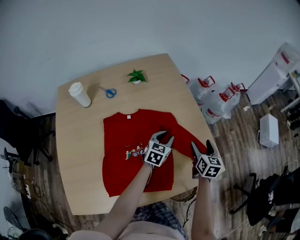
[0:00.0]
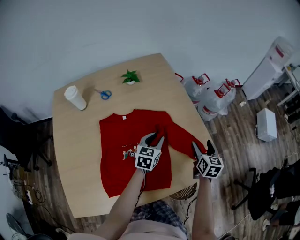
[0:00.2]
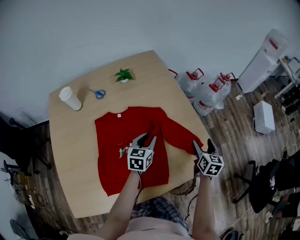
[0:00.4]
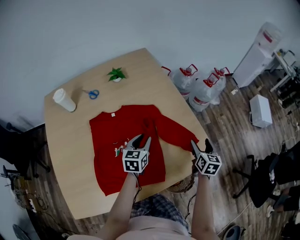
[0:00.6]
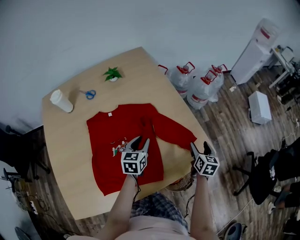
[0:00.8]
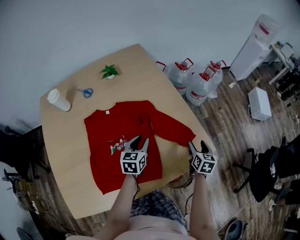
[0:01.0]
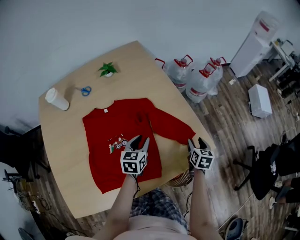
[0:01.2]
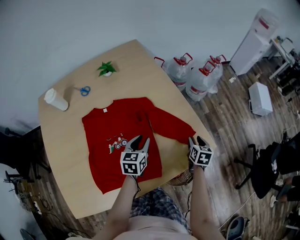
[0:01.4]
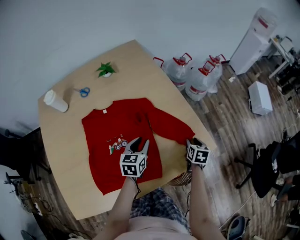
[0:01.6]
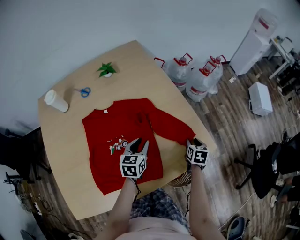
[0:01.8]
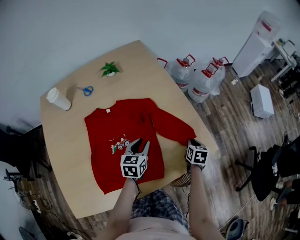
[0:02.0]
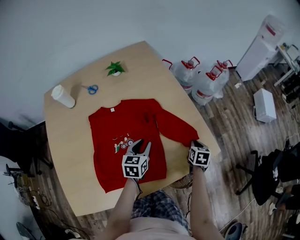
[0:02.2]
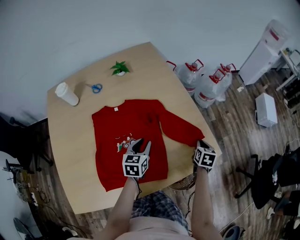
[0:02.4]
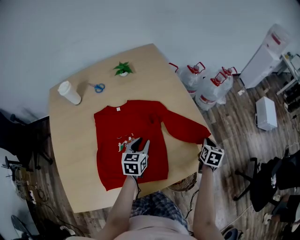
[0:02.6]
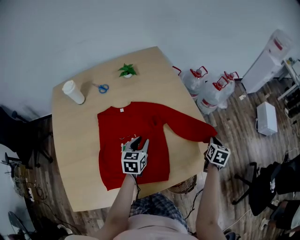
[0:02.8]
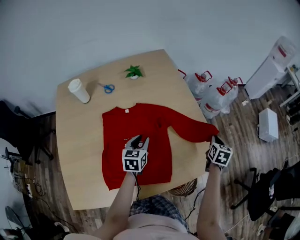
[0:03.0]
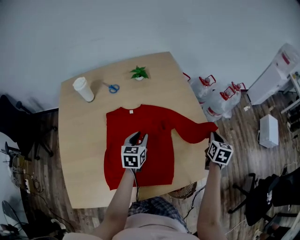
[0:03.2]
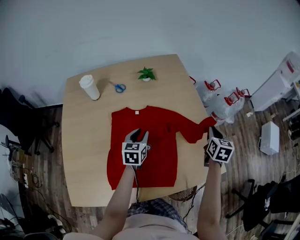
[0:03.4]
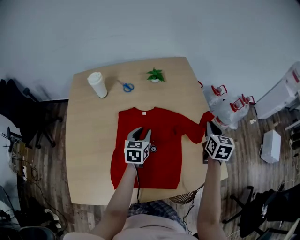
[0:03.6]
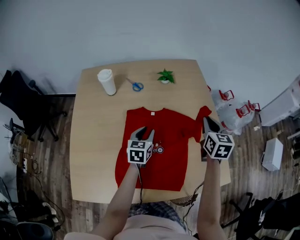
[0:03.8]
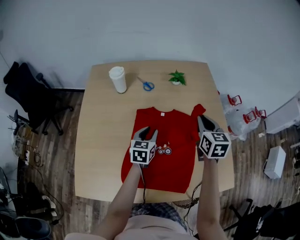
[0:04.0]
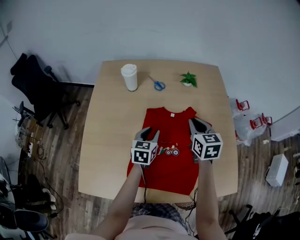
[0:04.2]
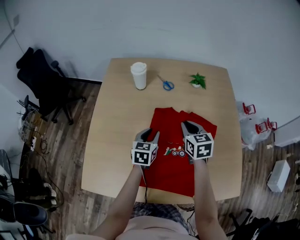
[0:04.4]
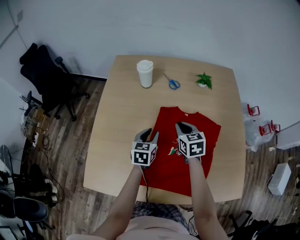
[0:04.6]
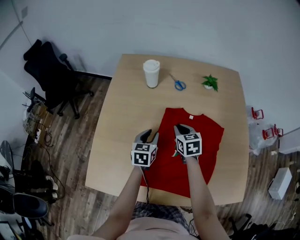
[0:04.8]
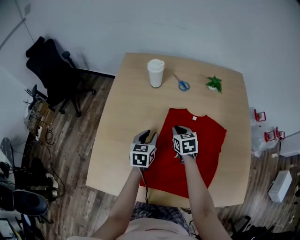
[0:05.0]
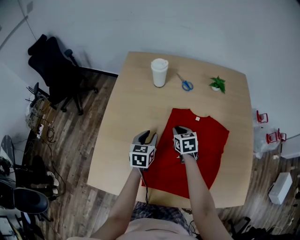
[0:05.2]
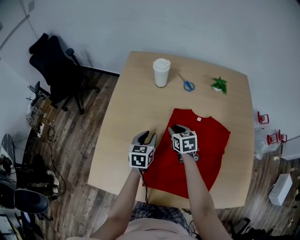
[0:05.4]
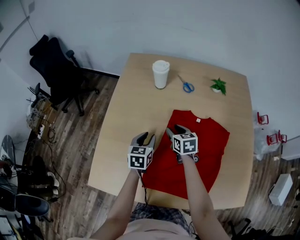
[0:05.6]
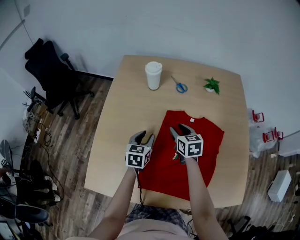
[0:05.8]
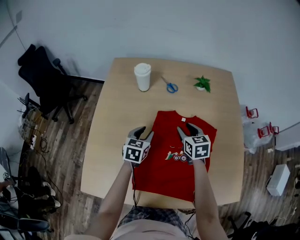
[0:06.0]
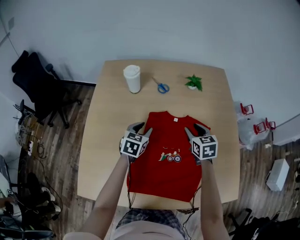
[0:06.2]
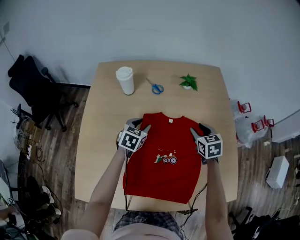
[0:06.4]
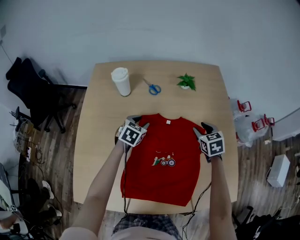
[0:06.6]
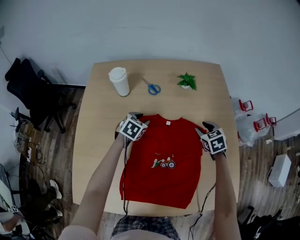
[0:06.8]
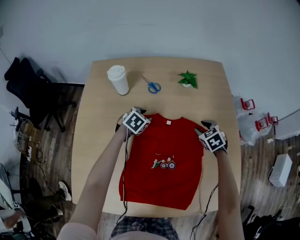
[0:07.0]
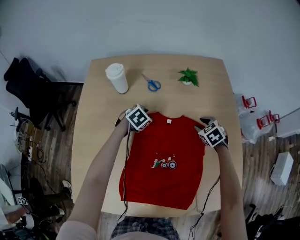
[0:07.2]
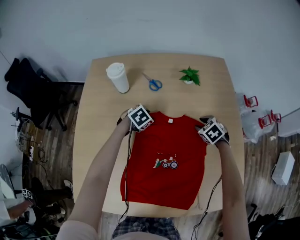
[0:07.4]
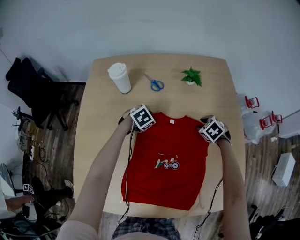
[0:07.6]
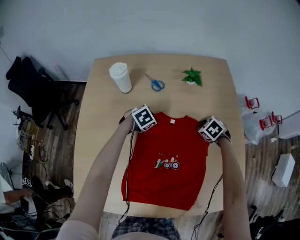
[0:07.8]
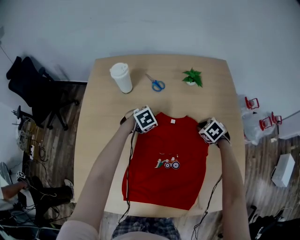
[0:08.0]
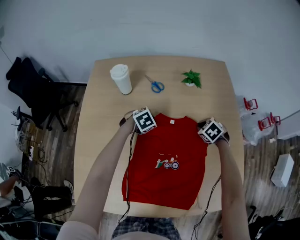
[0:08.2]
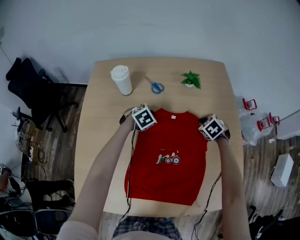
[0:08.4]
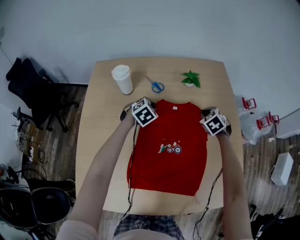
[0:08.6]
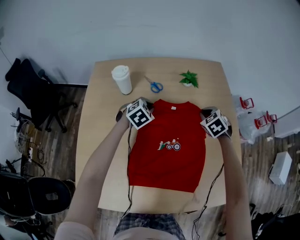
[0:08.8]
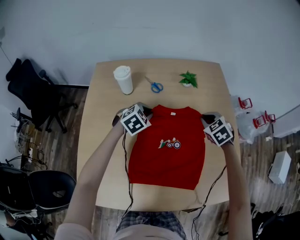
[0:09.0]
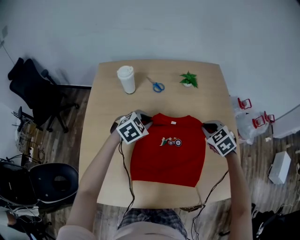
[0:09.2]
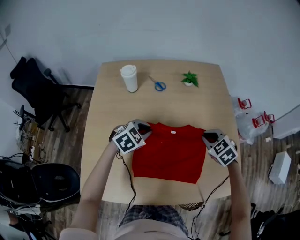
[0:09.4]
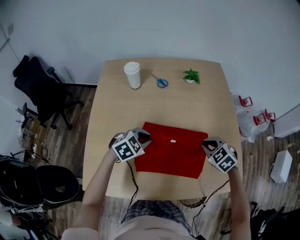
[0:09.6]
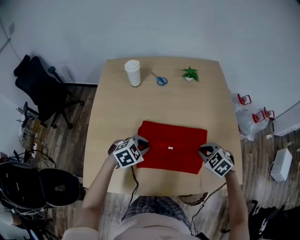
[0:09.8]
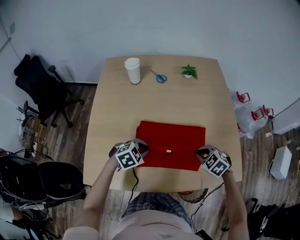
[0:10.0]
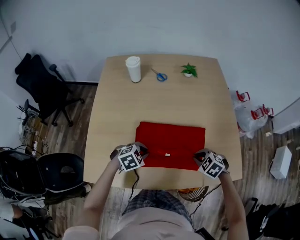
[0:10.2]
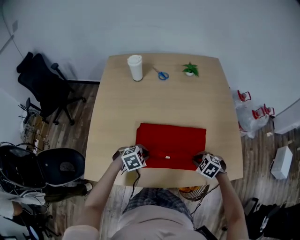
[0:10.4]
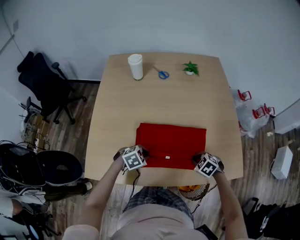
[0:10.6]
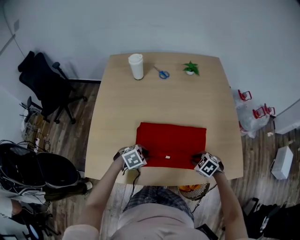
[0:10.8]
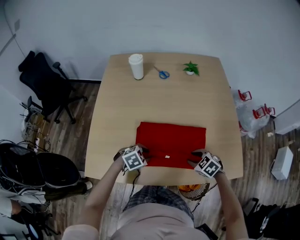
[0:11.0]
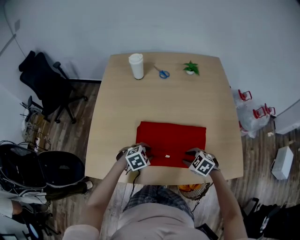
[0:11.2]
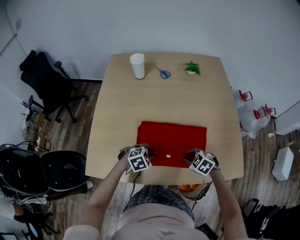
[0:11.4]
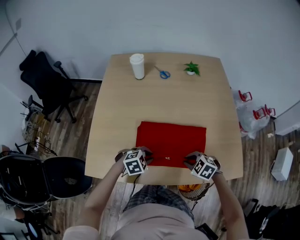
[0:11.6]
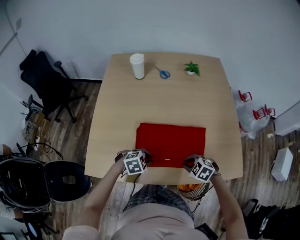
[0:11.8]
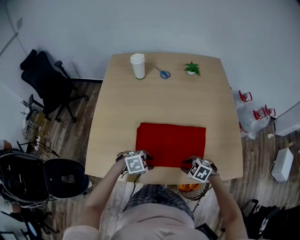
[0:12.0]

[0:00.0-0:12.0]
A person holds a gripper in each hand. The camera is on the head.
0:00.0 to 0:01.6: The left gripper heads backward, covering some 10 cm. Meanwhile the right gripper is displaced downward, to the right and backward by about 15 cm, changes its angle by roughly 20 degrees, and closes up.
0:01.6 to 0:03.0: The left gripper moves to the left, approximately 10 cm, while the right gripper shifts about 15 cm upward and forward.
0:03.0 to 0:04.4: The left gripper ends up about 20 cm from where it was. Meanwhile the right gripper shifts by roughly 50 cm, and rotates roughly 50 degrees.
0:04.4 to 0:06.0: The right gripper reaches some 15 cm to the left, then returns, and opens its fingers.
0:06.0 to 0:07.6: The left gripper travels forward, downward and to the right by approximately 20 cm, and points its fingers about 30 degrees further downward, while the right gripper is displaced to the right, downward and forward by about 20 cm, and angles its fingers downward, by about 30 degrees.
0:07.6 to 0:09.0: The grippers both shift upward by some 15 cm.
0:09.0 to 0:10.4: The right gripper shifts by approximately 35 cm, and rotates roughly 30 degrees. Meanwhile the left gripper shifts by roughly 35 cm.
0:10.4 to 0:12.0: The right gripper ends up about 5 cm from where it was, while the left gripper moves approximately 5 cm, and opens up.

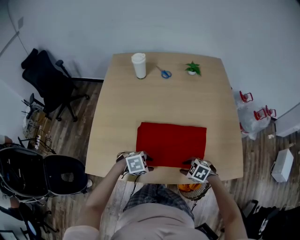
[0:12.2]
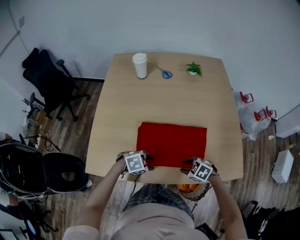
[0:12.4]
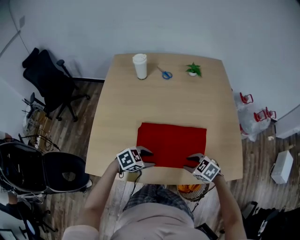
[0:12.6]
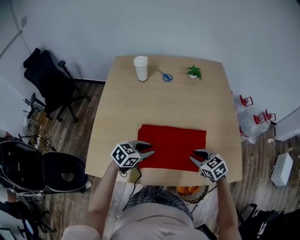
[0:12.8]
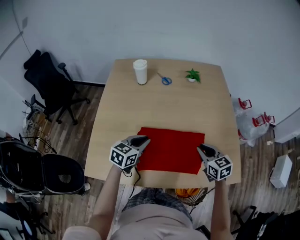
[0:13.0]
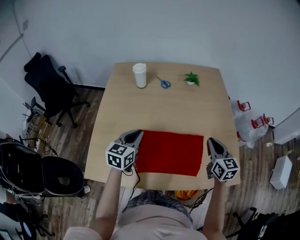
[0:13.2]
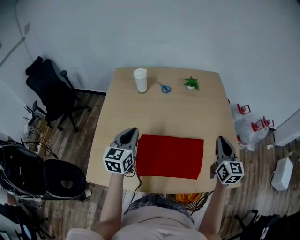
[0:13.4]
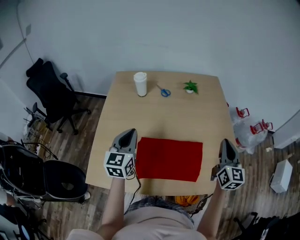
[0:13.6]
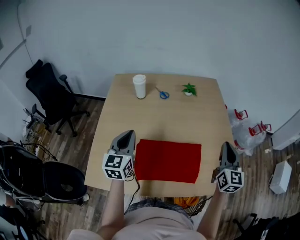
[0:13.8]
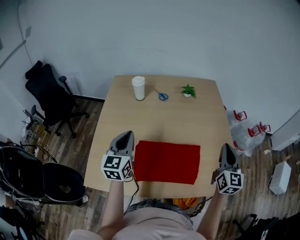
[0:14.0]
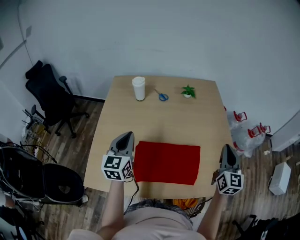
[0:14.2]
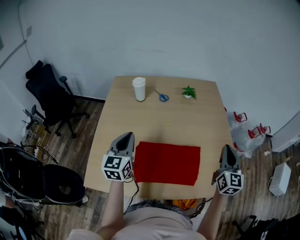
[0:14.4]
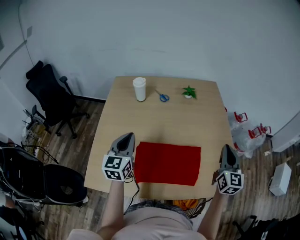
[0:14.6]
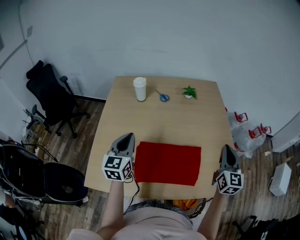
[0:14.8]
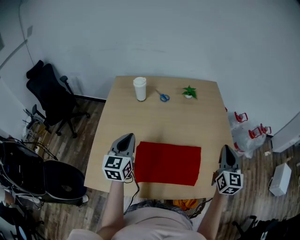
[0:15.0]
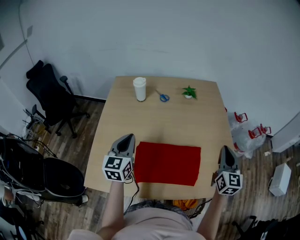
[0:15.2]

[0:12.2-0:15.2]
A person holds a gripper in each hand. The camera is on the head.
0:12.2 to 0:13.8: The two grippers go roughly 30 cm upward. The left gripper angles its fingers upward, by approximately 50 degrees, and closes up, while the right gripper angles its fingers upward, by some 60 degrees, and closes up.
0:13.8 to 0:15.2: Both grippers stay about where they are.

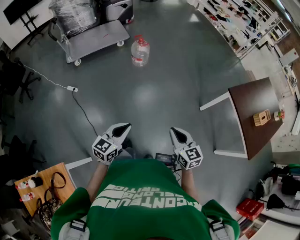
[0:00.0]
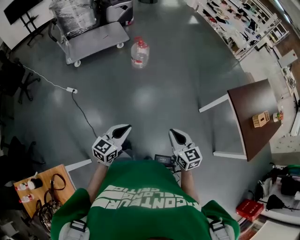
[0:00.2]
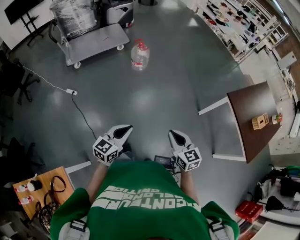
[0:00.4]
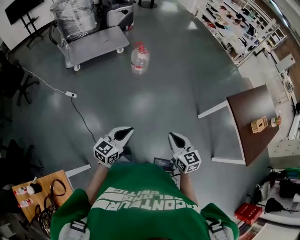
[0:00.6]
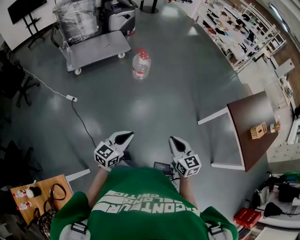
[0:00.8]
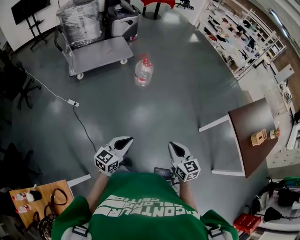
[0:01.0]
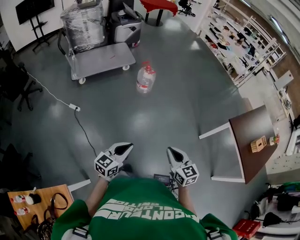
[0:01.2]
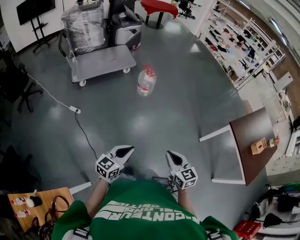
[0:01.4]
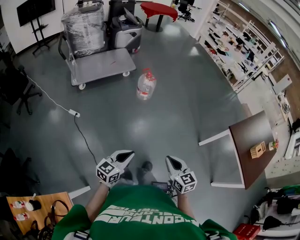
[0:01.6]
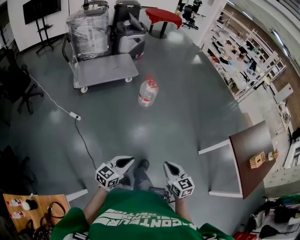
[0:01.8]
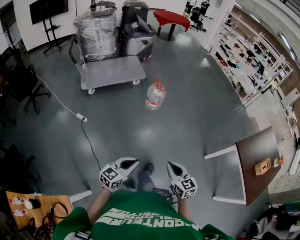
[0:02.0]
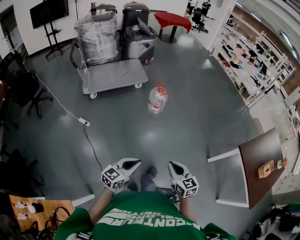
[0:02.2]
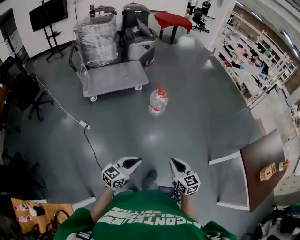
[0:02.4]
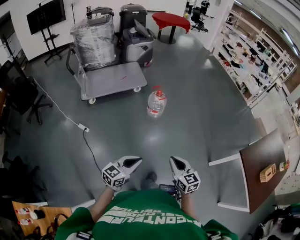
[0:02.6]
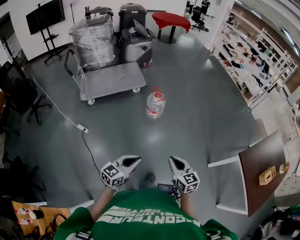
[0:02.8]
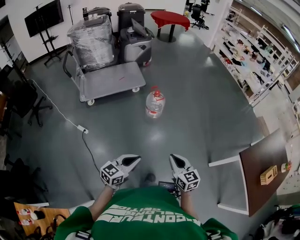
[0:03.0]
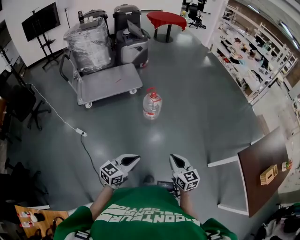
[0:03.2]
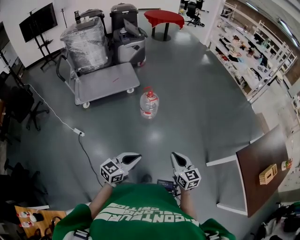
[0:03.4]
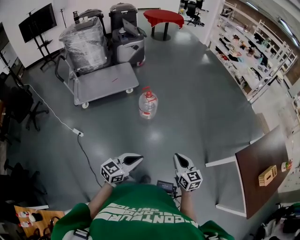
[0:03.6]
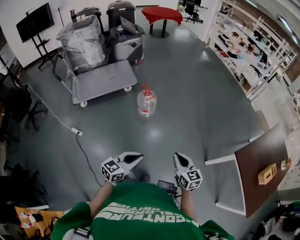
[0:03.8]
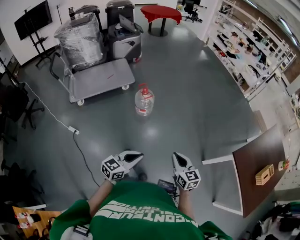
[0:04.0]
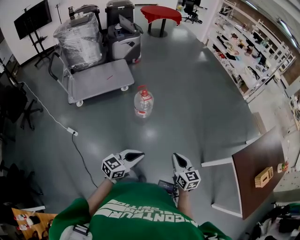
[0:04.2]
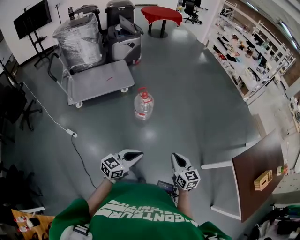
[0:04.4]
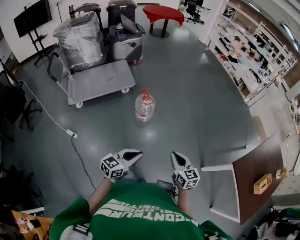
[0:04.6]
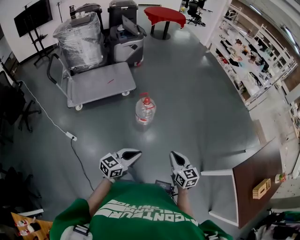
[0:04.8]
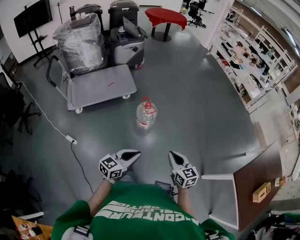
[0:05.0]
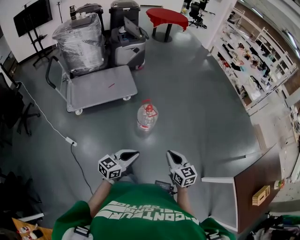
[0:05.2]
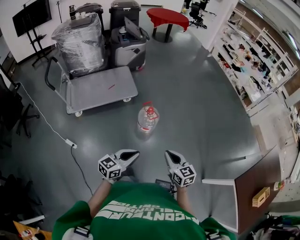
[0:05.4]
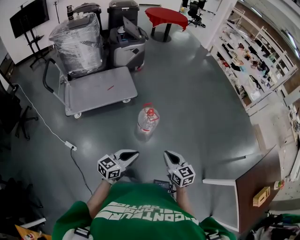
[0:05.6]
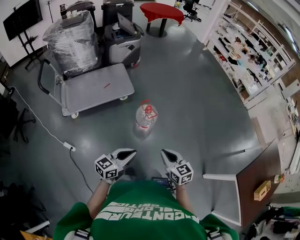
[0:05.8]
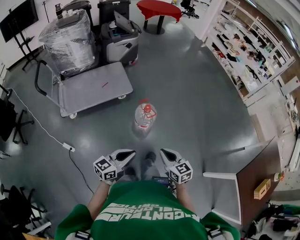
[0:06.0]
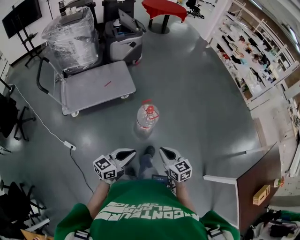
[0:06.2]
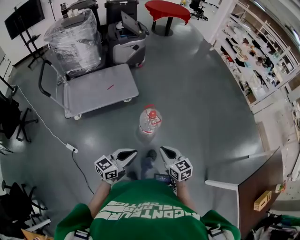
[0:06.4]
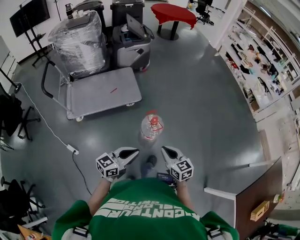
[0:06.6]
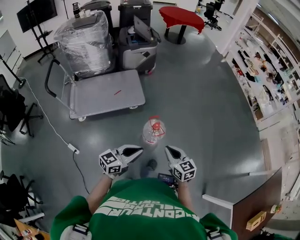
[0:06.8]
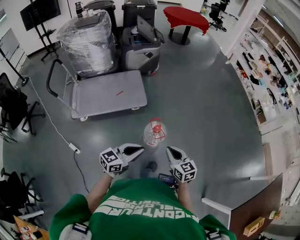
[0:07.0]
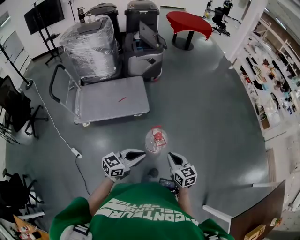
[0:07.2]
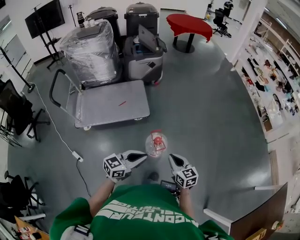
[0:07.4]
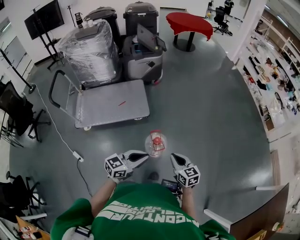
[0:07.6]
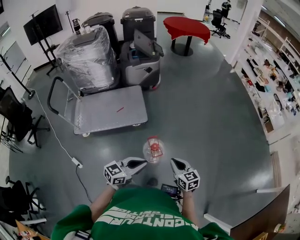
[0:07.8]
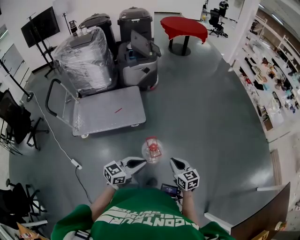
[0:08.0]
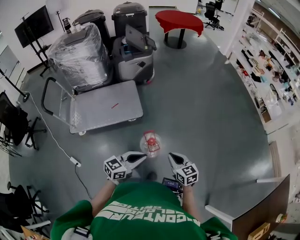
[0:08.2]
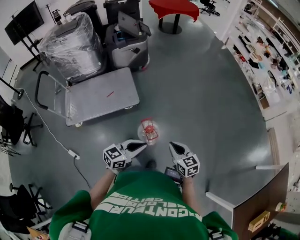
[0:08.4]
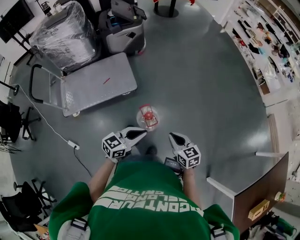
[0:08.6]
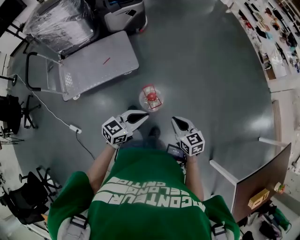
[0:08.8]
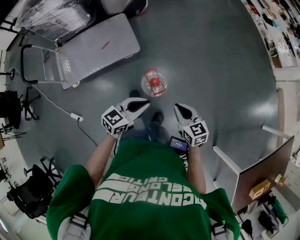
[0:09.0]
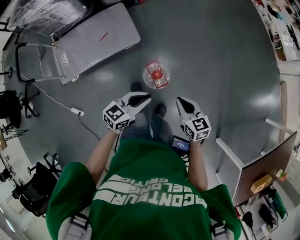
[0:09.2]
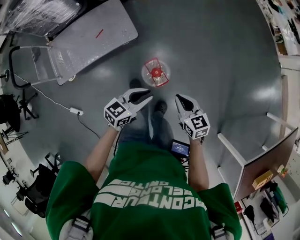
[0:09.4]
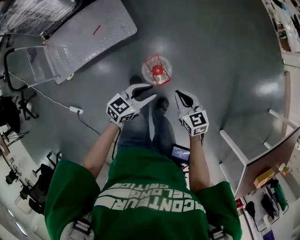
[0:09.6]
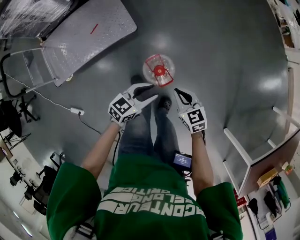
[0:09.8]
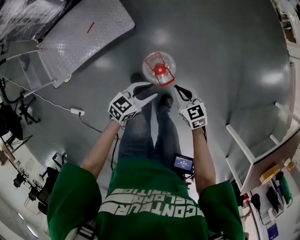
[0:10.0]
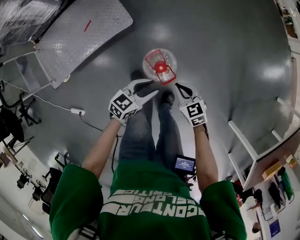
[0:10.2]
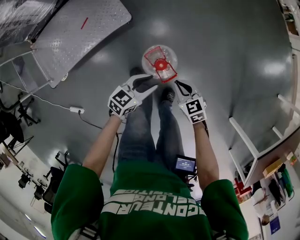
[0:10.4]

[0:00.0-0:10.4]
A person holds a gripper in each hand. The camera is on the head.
0:00.0 to 0:01.4: Both grippers travel together to the left, approximately 10 cm.
0:01.4 to 0:03.0: The grippers both shift forward by approximately 20 cm.
0:03.0 to 0:04.4: Both grippers move forward and to the right, roughly 15 cm.
0:04.4 to 0:06.0: The right gripper heads to the left and forward, covering some 30 cm; the left gripper heads forward and to the left, covering approximately 25 cm.
0:06.0 to 0:07.4: Both grippers travel together forward, some 25 cm.
0:07.4 to 0:09.0: The right gripper travels forward and downward by roughly 10 cm; the left gripper heads forward and downward, covering approximately 15 cm.
0:09.0 to 0:10.4: Both grippers travel together downward, about 25 cm. The left gripper opens.
